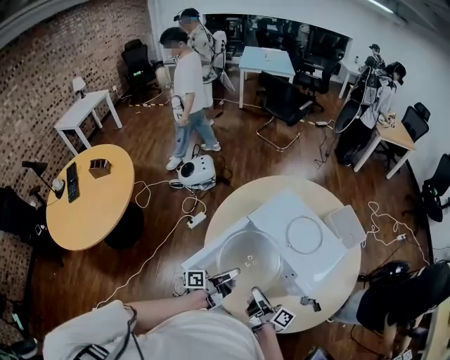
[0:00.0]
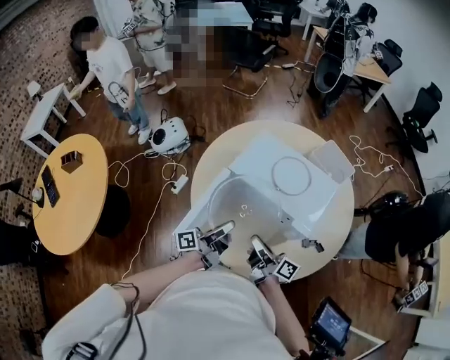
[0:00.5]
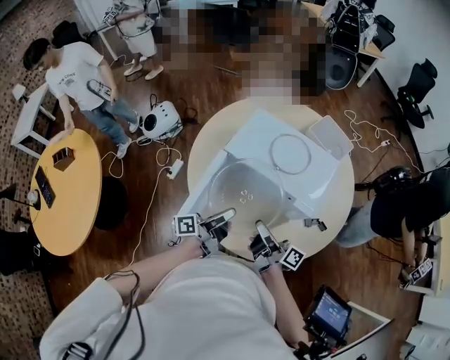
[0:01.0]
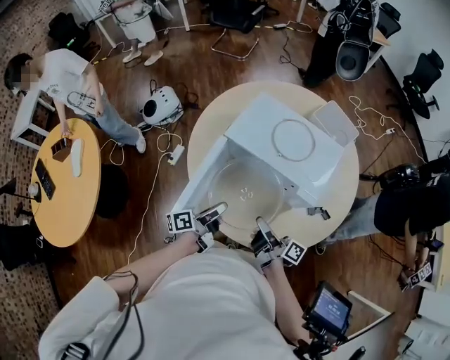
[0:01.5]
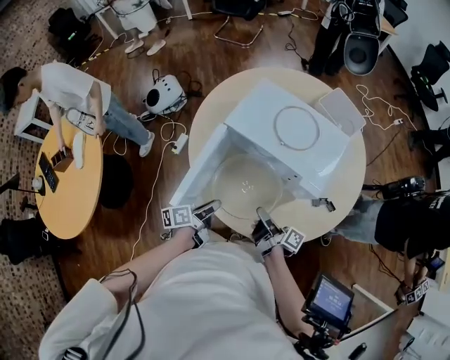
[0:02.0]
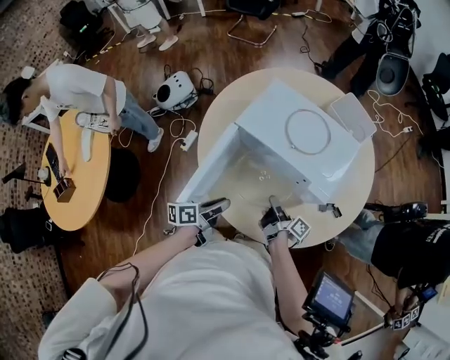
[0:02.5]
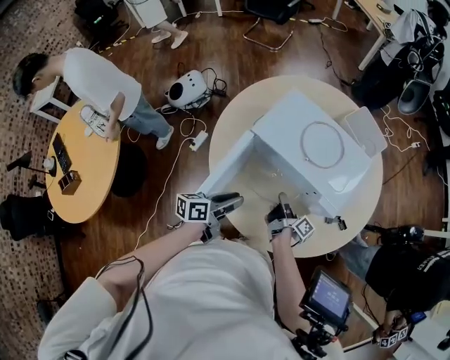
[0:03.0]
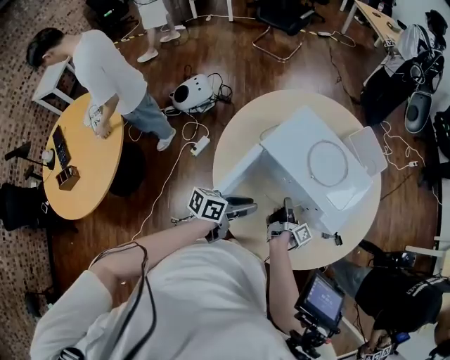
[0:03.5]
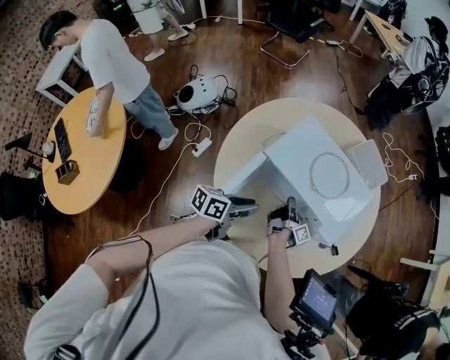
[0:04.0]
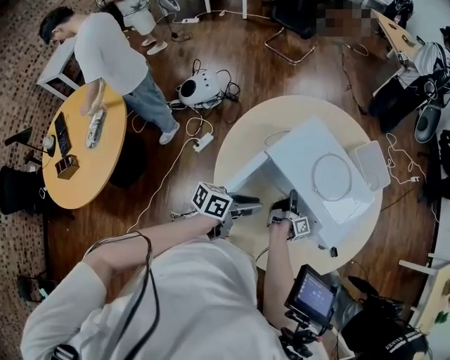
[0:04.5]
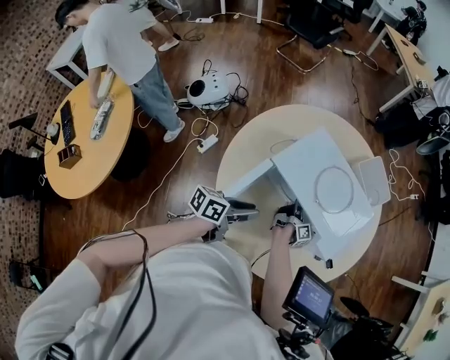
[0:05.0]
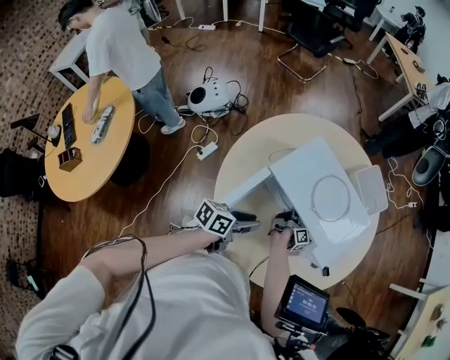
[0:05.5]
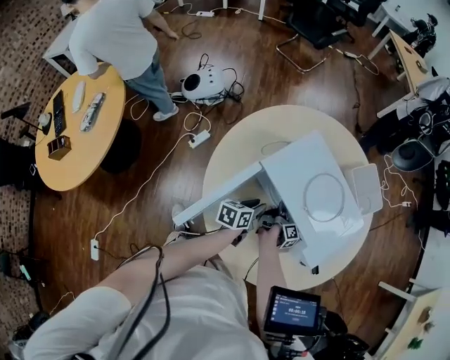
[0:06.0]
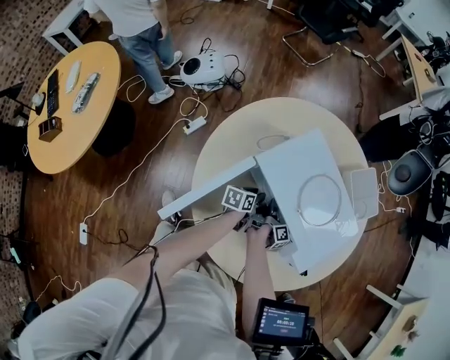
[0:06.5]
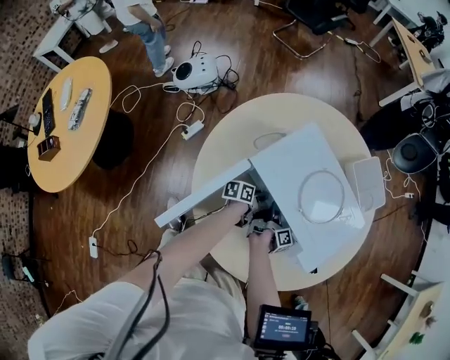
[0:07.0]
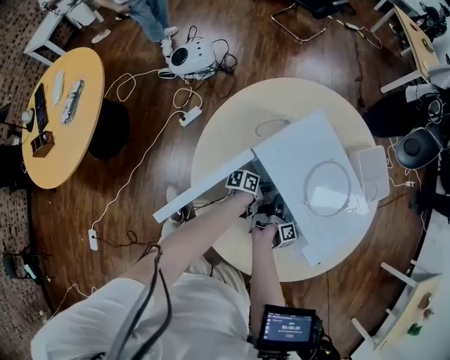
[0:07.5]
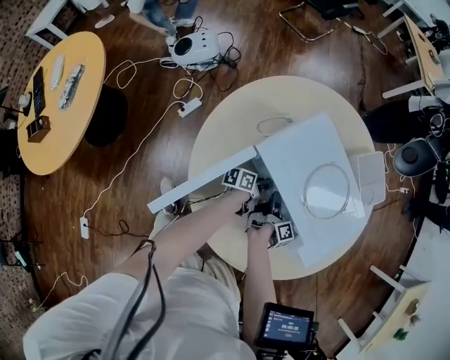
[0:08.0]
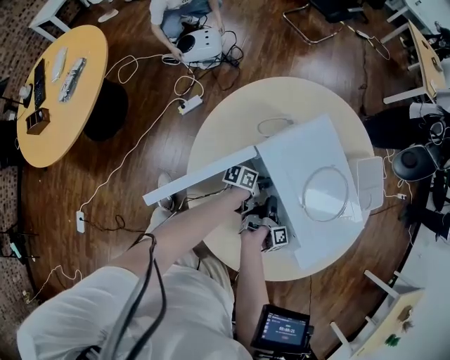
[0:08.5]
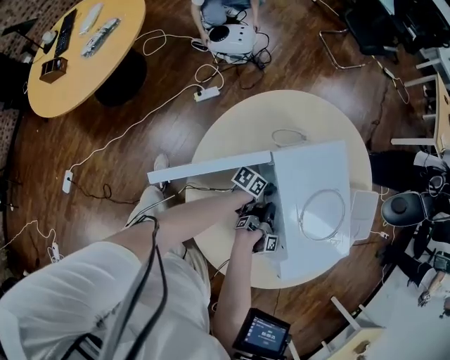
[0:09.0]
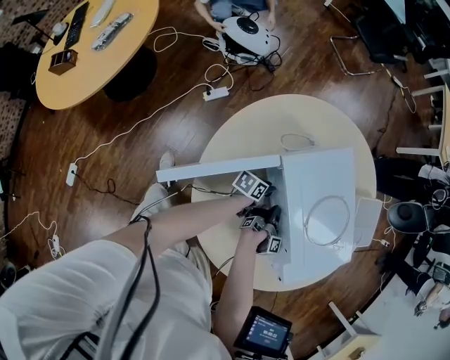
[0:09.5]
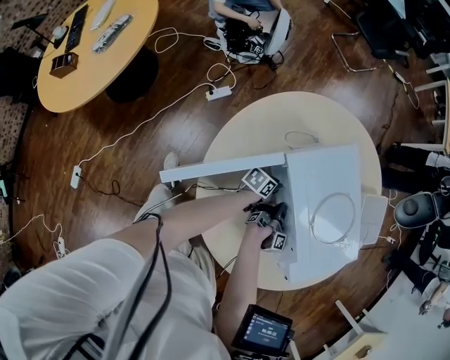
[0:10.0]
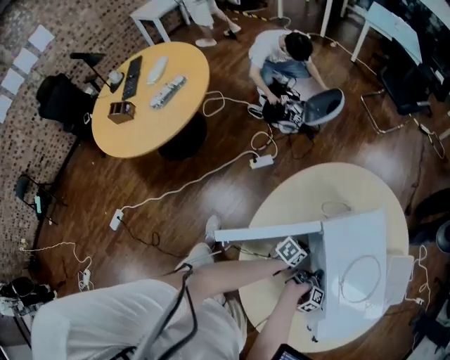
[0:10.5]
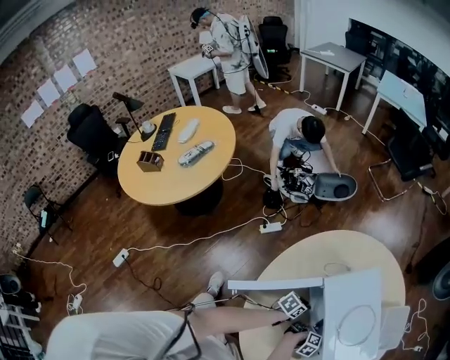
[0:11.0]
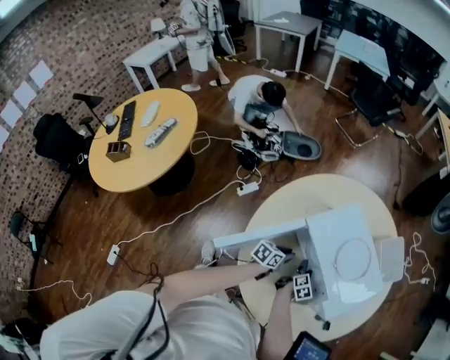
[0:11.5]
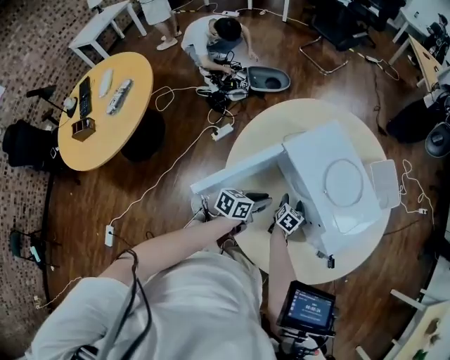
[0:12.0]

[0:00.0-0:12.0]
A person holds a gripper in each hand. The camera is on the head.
0:00.0 to 0:02.0: The two grippers go about 10 cm downward. The right gripper swivels approximately 20 degrees, and closes up. The left gripper swivels roughly 30 degrees.
0:02.0 to 0:04.0: The right gripper travels forward and downward by some 20 cm, and changes its angle by roughly 30 degrees; the left gripper shifts roughly 10 cm forward and upward, and changes its angle by some 30 degrees.
0:04.0 to 0:06.0: The left gripper shifts roughly 15 cm downward and forward, and swivels approximately 30 degrees; the right gripper shifts approximately 10 cm downward and forward.
0:06.0 to 0:08.0: The left gripper shifts some 15 cm downward and forward, and changes its angle by about 30 degrees.
0:08.0 to 0:10.0: The left gripper rotates about 20 degrees.
0:10.0 to 0:12.0: The right gripper moves about 5 cm to the right and comes back, rotates around the line of its fingers by approximately 90 degrees, counterclockwise from behind, and opens. The left gripper shifts about 20 cm backward and upward.

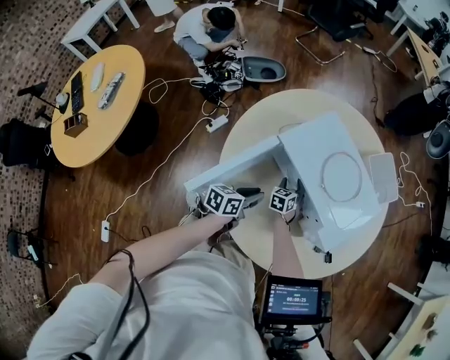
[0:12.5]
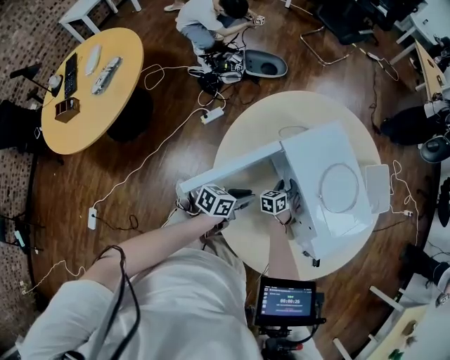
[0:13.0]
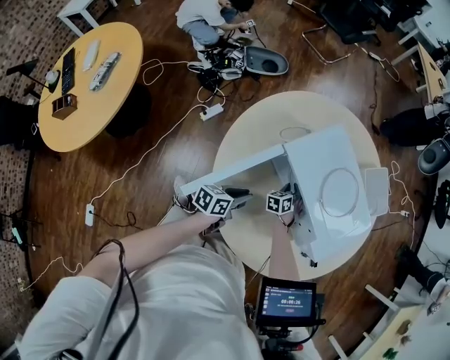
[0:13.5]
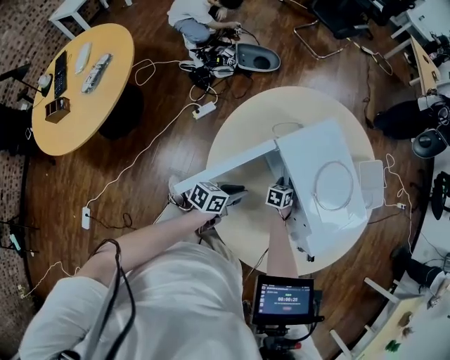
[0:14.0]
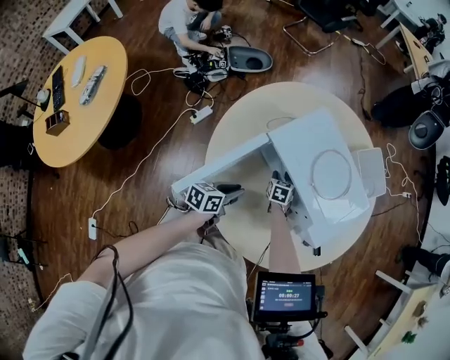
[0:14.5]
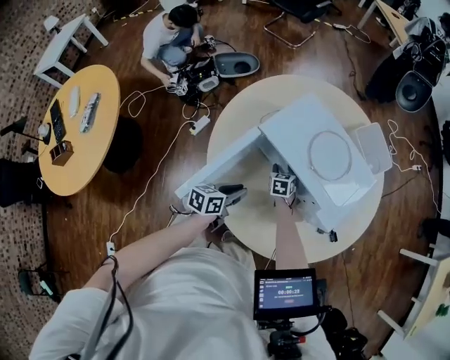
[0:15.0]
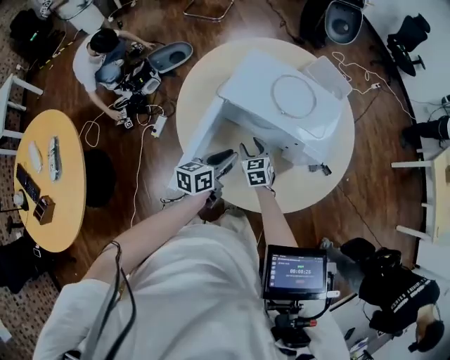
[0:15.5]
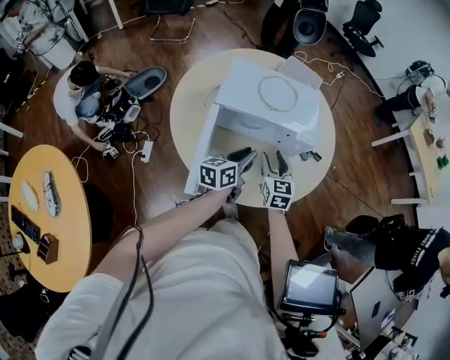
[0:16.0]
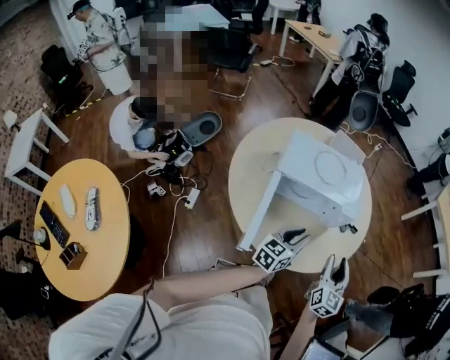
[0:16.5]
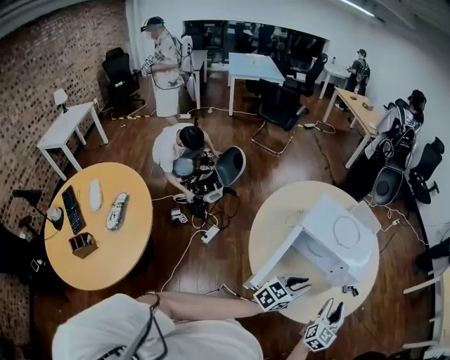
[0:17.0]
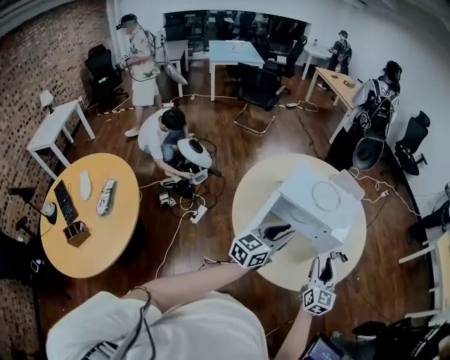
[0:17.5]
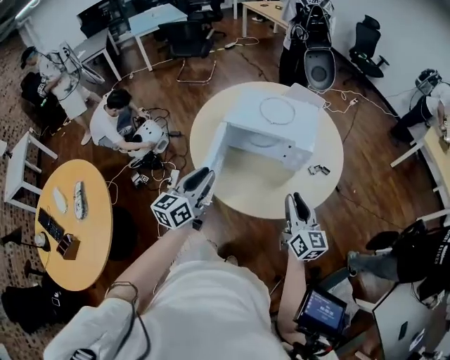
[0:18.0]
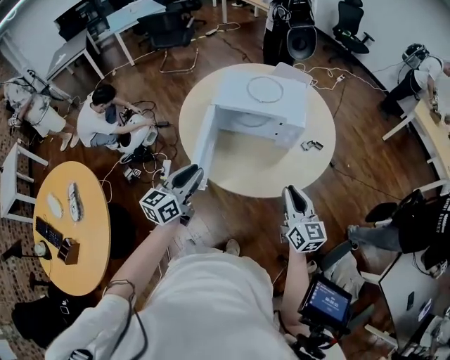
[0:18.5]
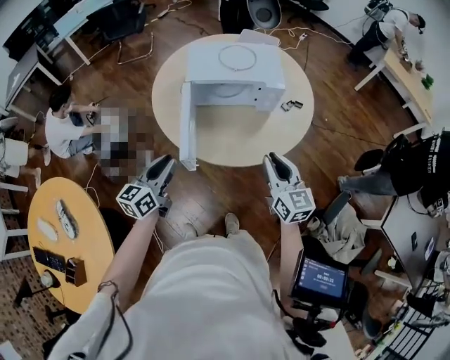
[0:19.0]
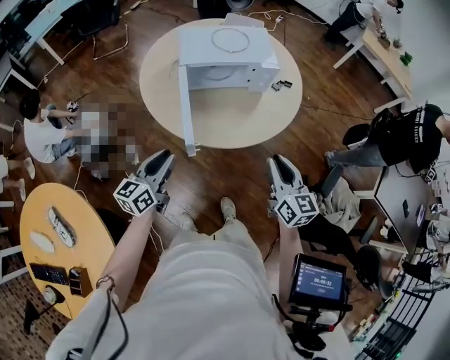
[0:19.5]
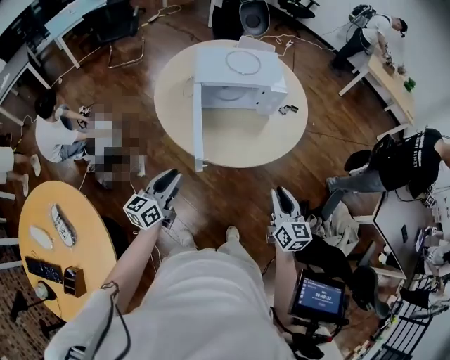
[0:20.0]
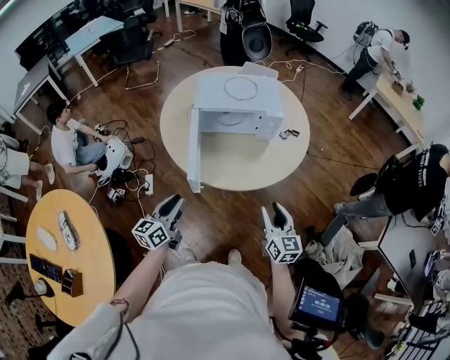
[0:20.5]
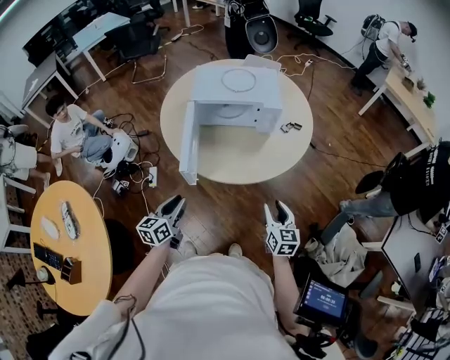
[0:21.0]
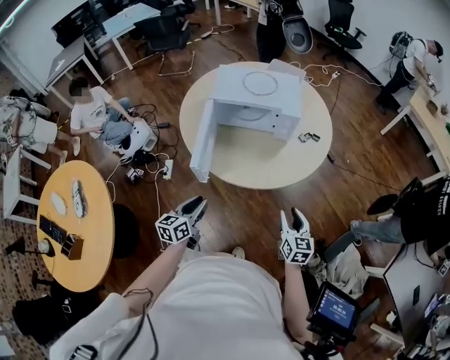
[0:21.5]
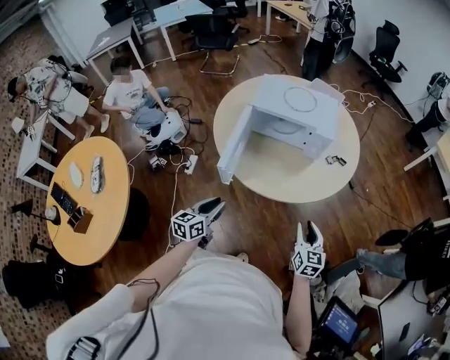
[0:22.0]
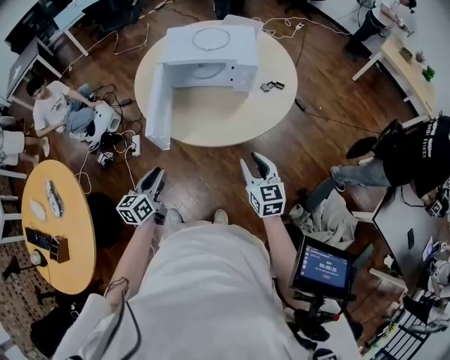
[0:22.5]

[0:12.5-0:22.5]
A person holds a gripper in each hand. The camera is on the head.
0:14.5 to 0:16.5: The left gripper goes roughly 20 cm upward, and swivels approximately 50 degrees. The right gripper changes place by about 50 cm, and tilts its fingers about 40 degrees upward.
0:16.5 to 0:18.5: The right gripper ends up about 10 cm from where it was, rotates approximately 30 degrees, and closes; the left gripper changes place by about 20 cm.
0:18.5 to 0:20.5: The right gripper travels backward by roughly 15 cm. The left gripper moves backward, downward and to the left, some 15 cm.
0:20.5 to 0:22.5: The left gripper is displaced to the right and downward by some 10 cm, while the right gripper is displaced to the right by approximately 10 cm.

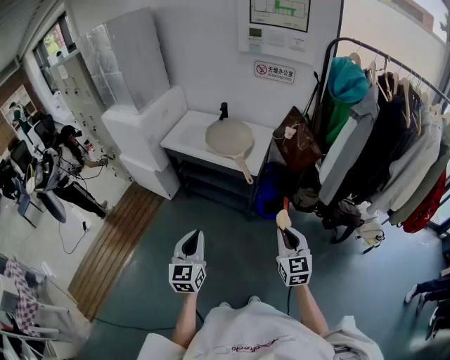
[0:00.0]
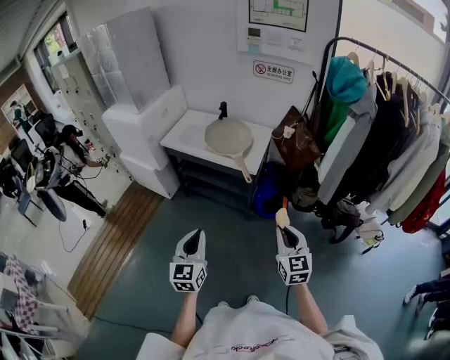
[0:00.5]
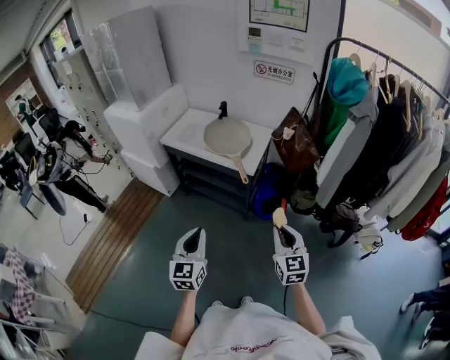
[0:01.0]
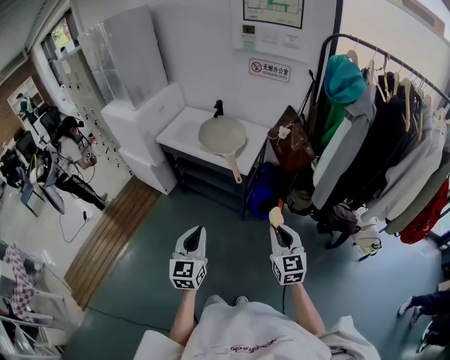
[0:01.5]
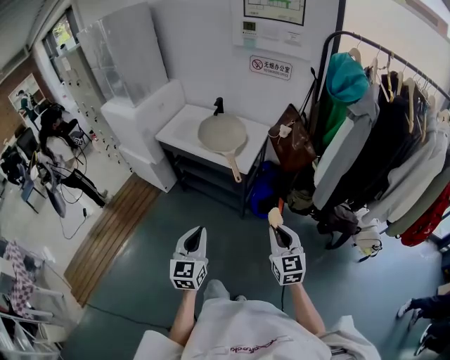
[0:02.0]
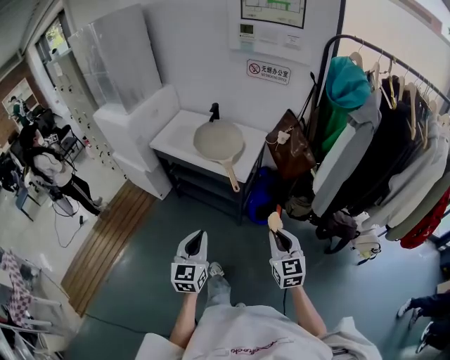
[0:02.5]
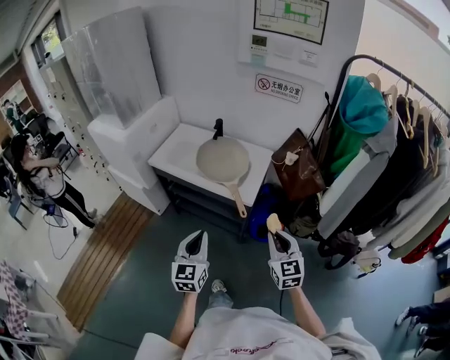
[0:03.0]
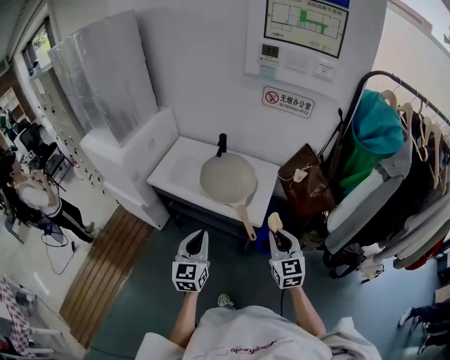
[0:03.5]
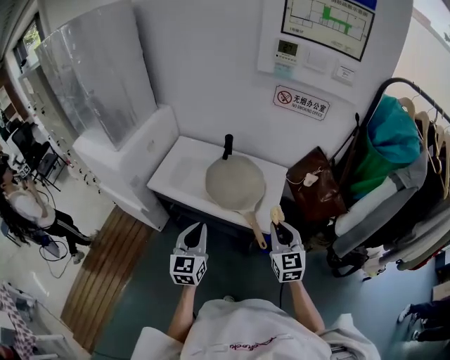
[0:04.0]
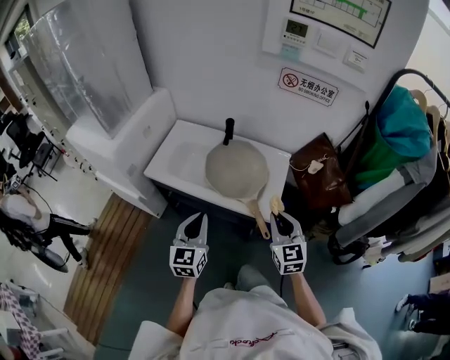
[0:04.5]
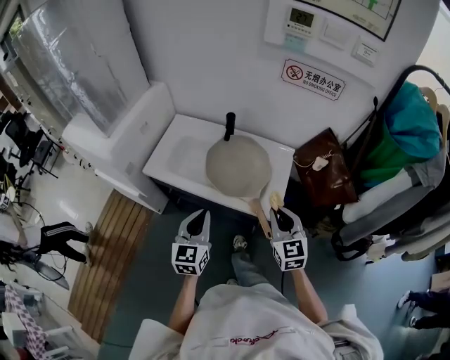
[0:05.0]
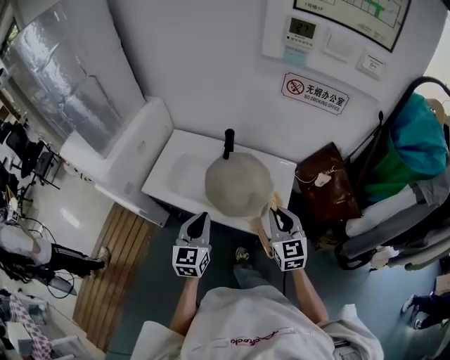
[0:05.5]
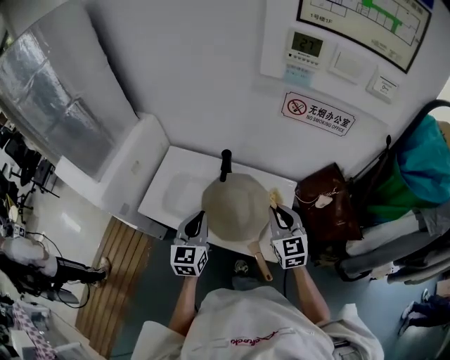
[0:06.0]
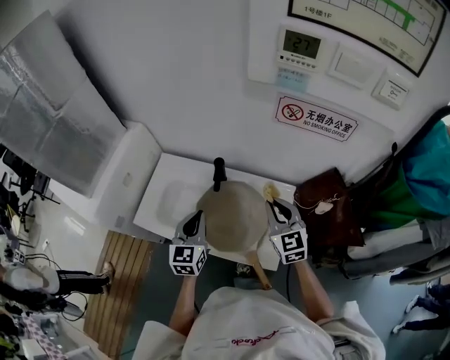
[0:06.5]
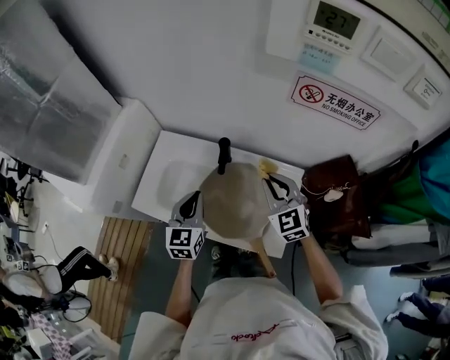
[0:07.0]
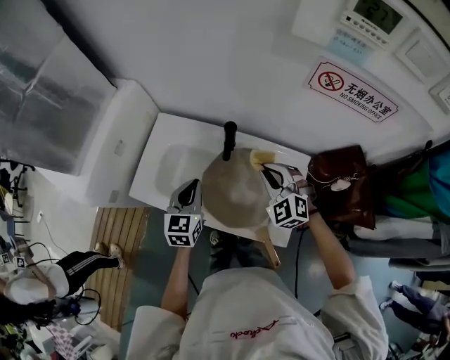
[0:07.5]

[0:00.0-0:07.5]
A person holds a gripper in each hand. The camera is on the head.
0:00.0 to 0:02.0: The left gripper travels to the right by approximately 10 cm. Meanwhile the right gripper moves to the right, about 5 cm.
0:02.0 to 0:04.0: The two grippers go about 35 cm forward.
0:04.0 to 0:05.5: Both grippers travel together forward, approximately 10 cm.
0:05.5 to 0:07.5: Both grippers travel together forward, some 20 cm. The right gripper rotates about 40 degrees.
